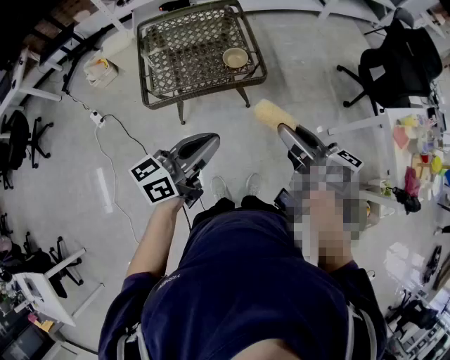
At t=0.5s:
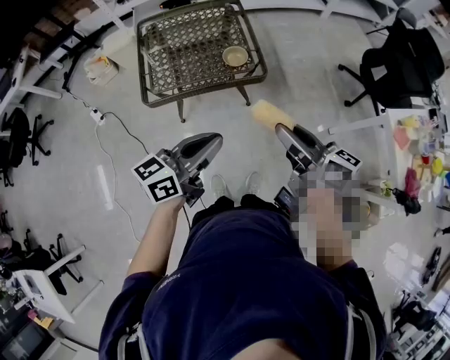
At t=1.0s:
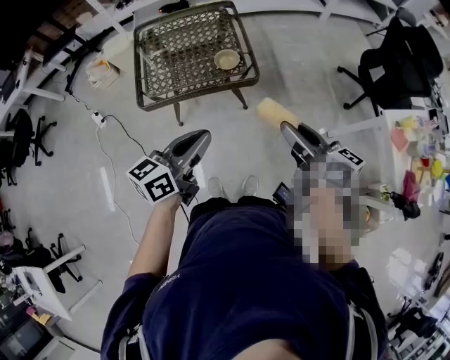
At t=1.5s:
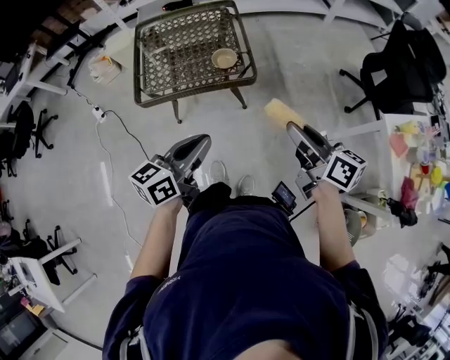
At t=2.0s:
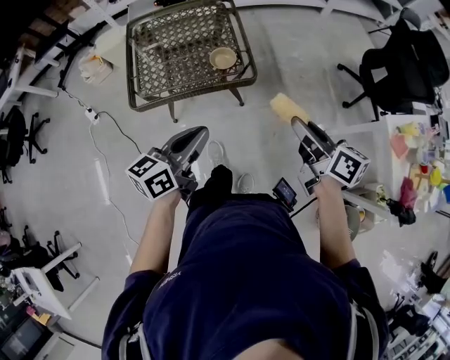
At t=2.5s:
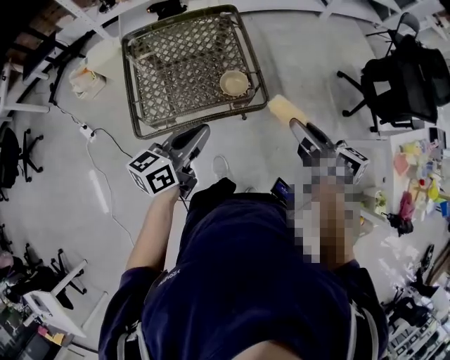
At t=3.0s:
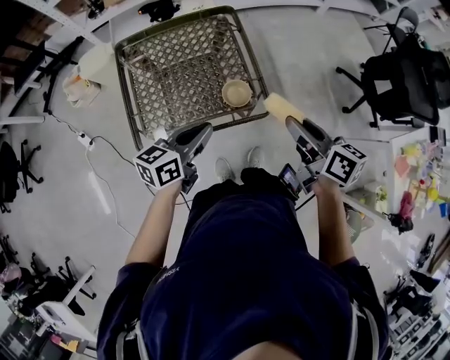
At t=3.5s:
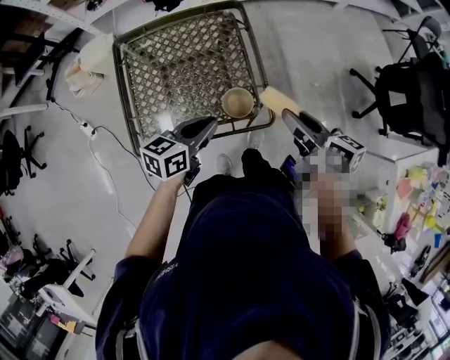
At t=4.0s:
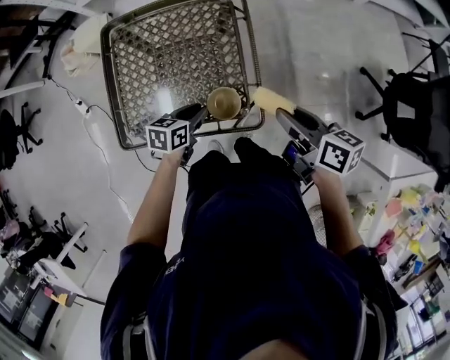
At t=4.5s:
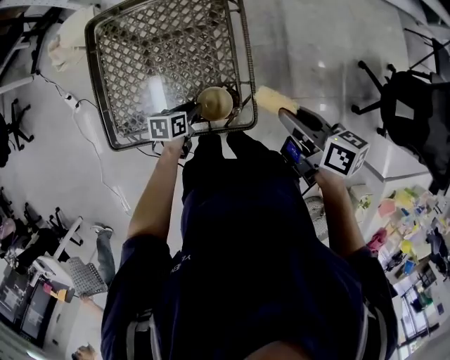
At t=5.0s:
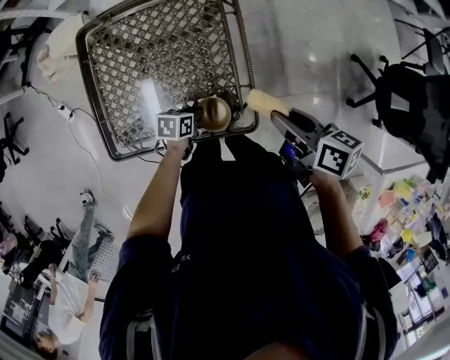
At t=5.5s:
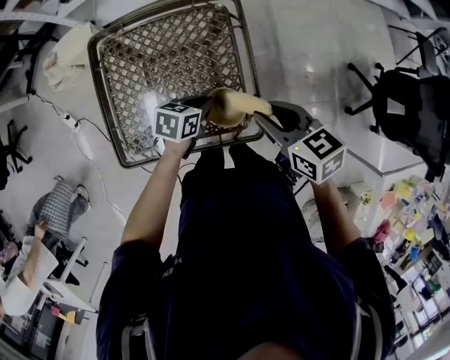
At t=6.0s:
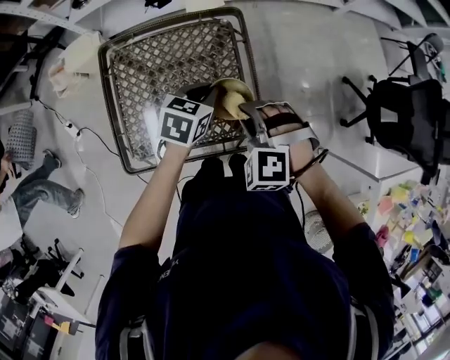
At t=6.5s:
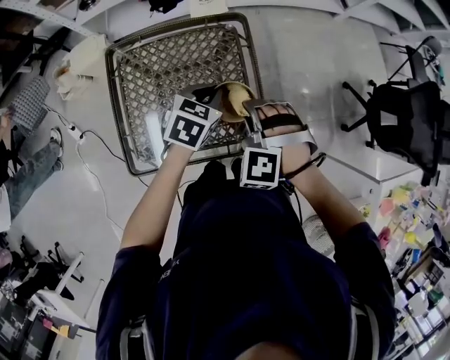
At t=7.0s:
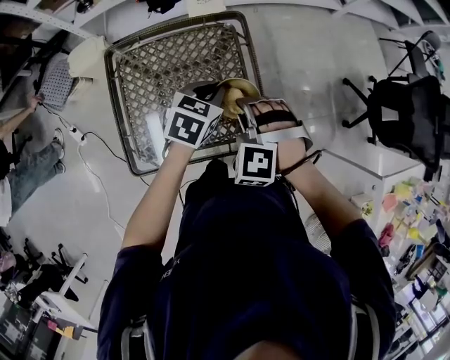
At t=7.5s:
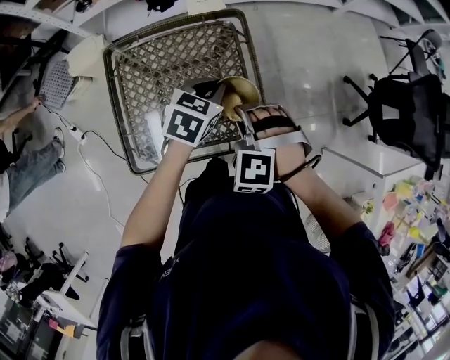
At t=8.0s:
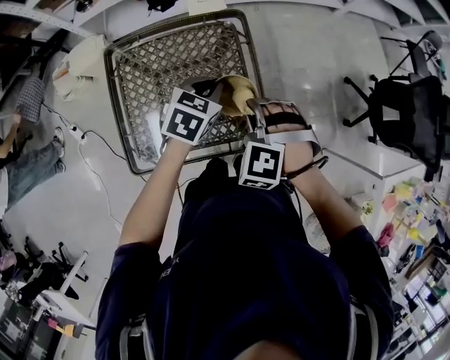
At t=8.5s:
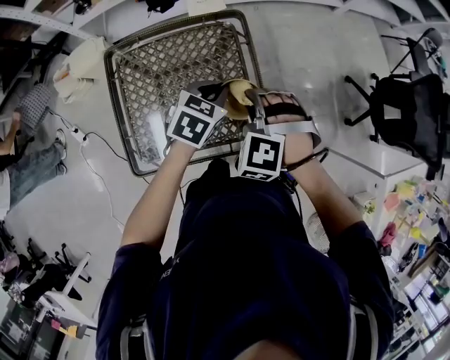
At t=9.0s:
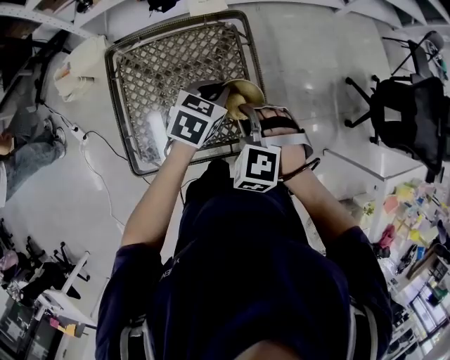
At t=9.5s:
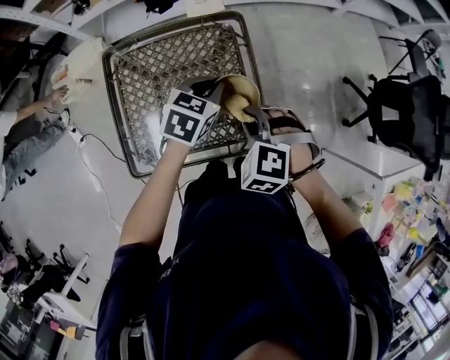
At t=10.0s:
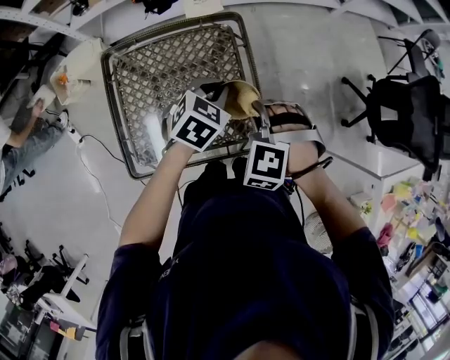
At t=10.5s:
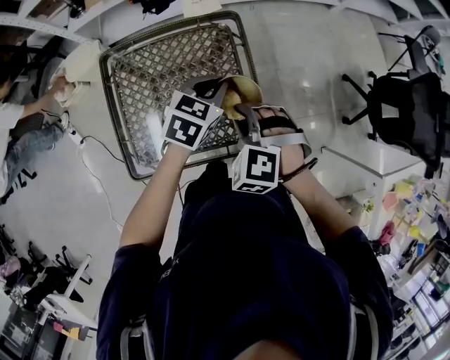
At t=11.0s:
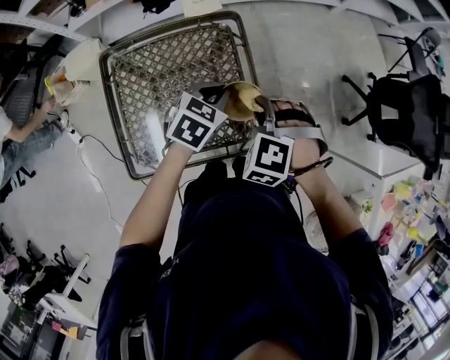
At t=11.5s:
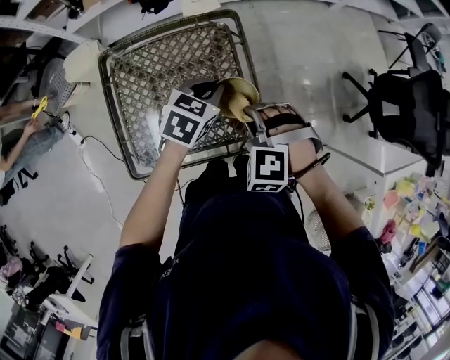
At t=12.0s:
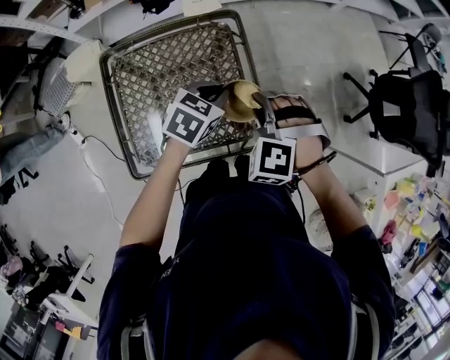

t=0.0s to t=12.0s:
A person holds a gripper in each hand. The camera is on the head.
t=0.0s to t=2.0s: The left gripper moves forward and downward, about 10 cm. Meanwhile the right gripper is displaced to the right and forward by approximately 15 cm.
t=2.0s to t=4.0s: The right gripper is displaced forward by roughly 35 cm, and changes its angle by some 20 degrees; the left gripper goes about 40 cm forward and downward, and angles its fingers downward, by approximately 30 degrees.
t=4.0s to t=6.0s: The right gripper moves to the left, some 15 cm, and rolls counterclockwise, seen from behind, by approximately 100 degrees, while the left gripper is displaced forward and upward by roughly 15 cm, and rotates roughly 20 degrees.
t=6.0s to t=8.0s: The grippers move only a little.
t=10.0s to t=12.0s: The grippers make only small movements.

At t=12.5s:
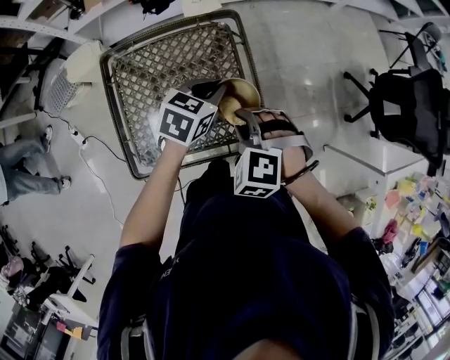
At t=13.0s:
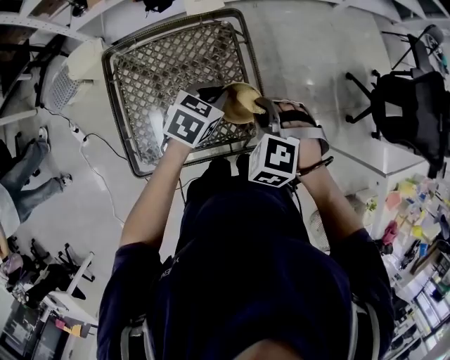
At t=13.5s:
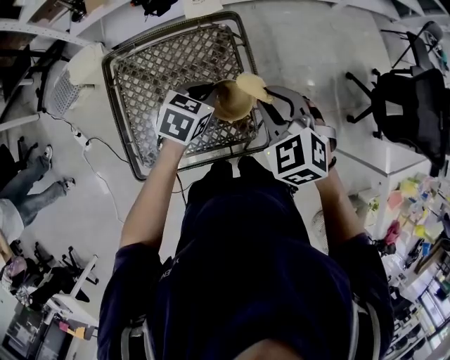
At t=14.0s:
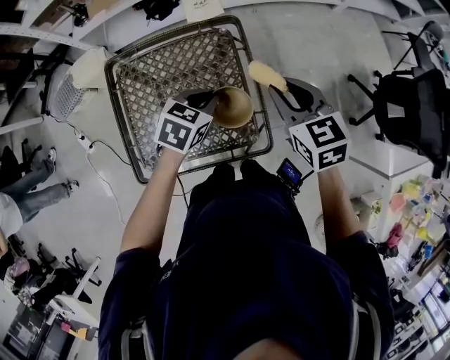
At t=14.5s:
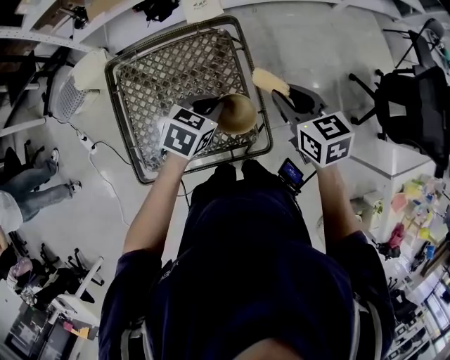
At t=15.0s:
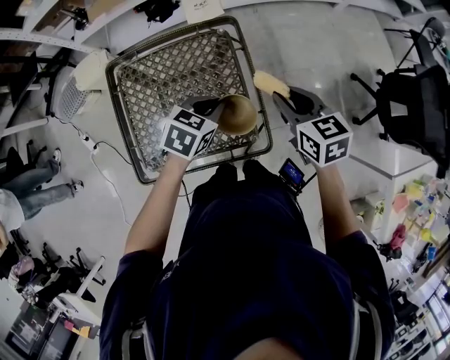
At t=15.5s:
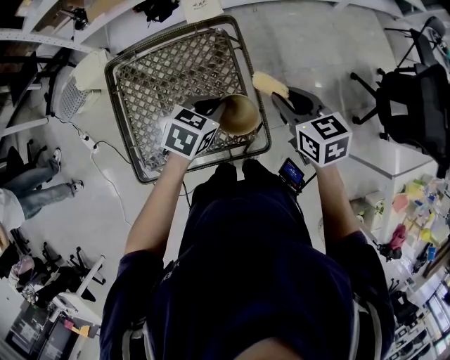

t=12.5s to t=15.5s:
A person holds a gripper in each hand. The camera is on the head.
t=12.5s to t=14.0s: The right gripper moves forward, upward and to the right, some 15 cm, and rotates around the line of its fingers by roughly 50 degrees, clockwise from behind.
t=14.0s to t=15.5s: The right gripper shifts by about 5 cm.

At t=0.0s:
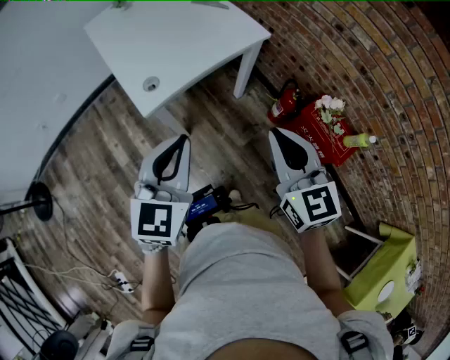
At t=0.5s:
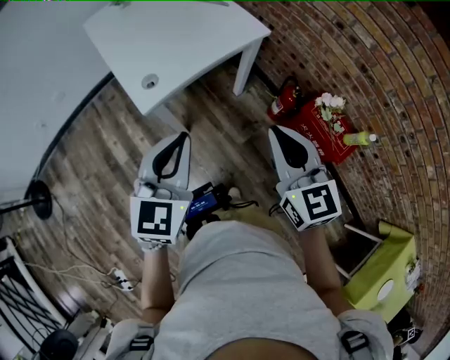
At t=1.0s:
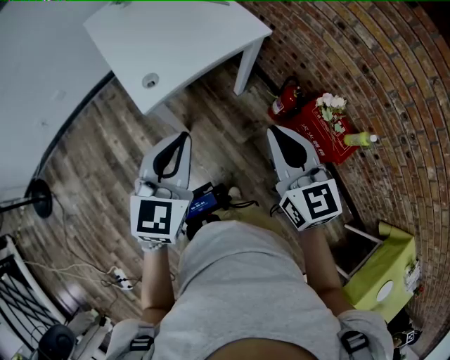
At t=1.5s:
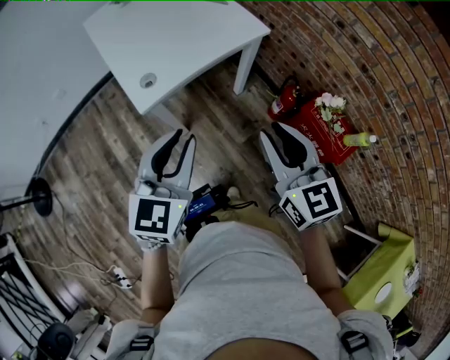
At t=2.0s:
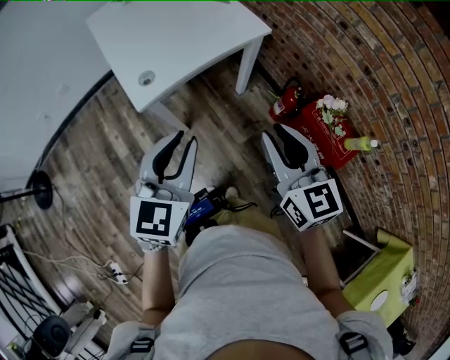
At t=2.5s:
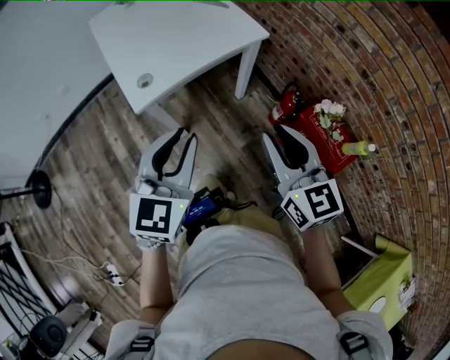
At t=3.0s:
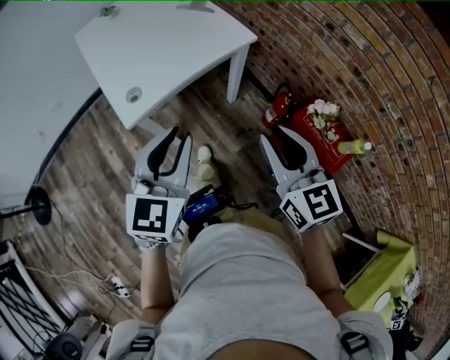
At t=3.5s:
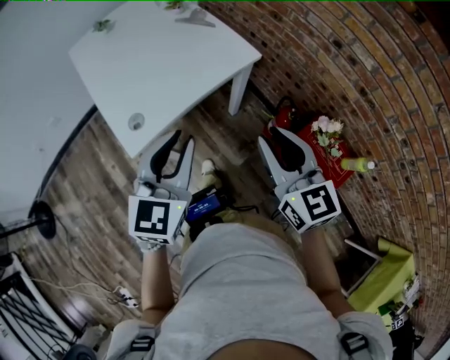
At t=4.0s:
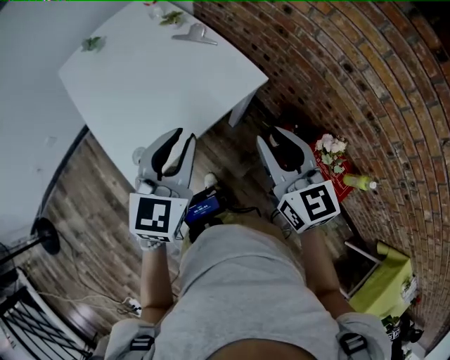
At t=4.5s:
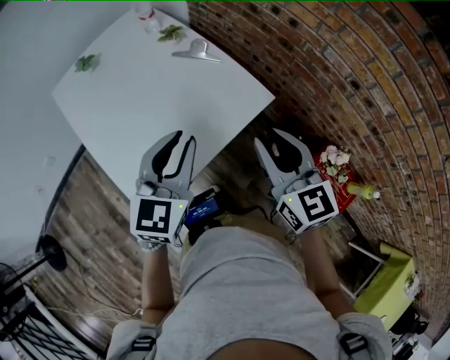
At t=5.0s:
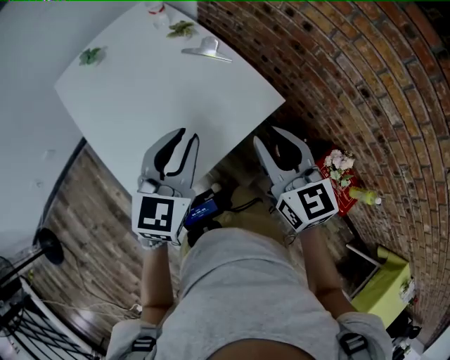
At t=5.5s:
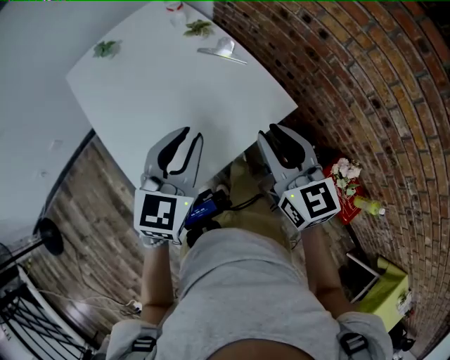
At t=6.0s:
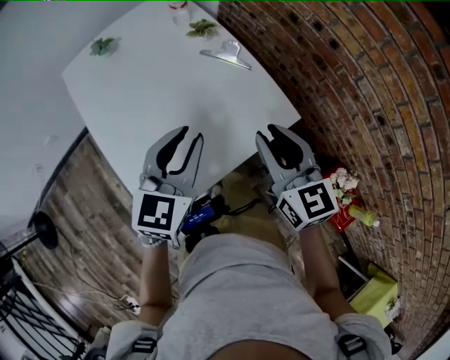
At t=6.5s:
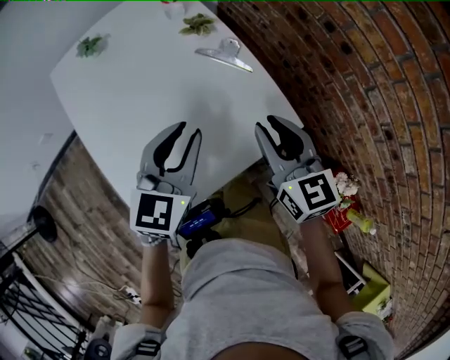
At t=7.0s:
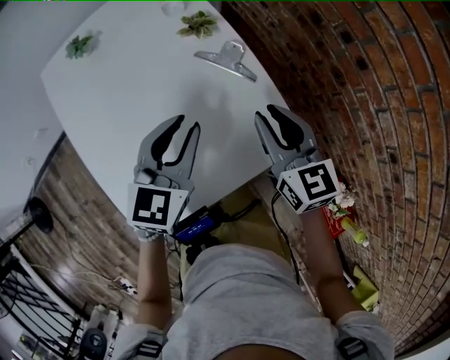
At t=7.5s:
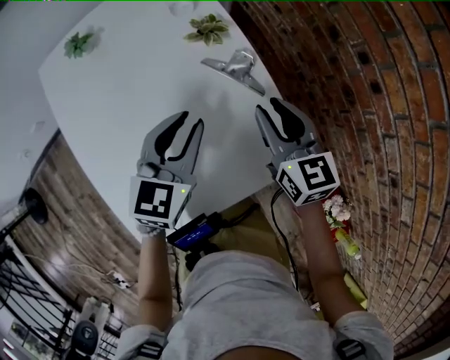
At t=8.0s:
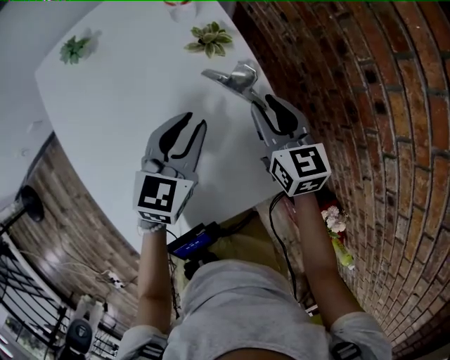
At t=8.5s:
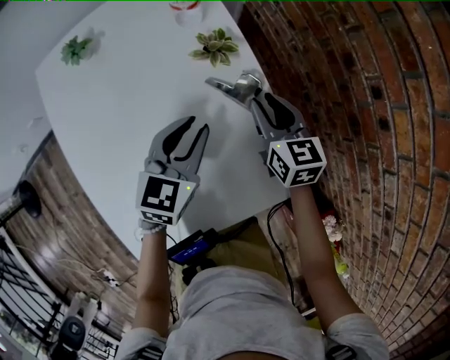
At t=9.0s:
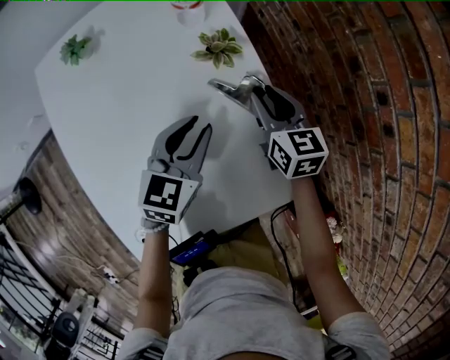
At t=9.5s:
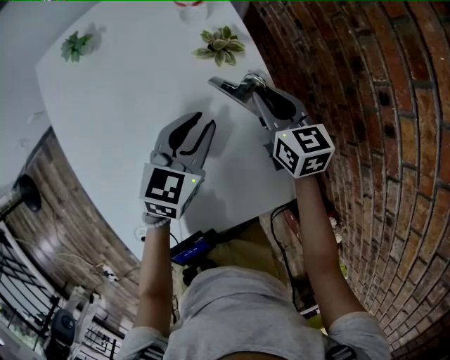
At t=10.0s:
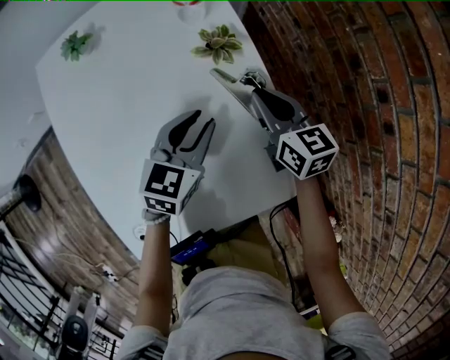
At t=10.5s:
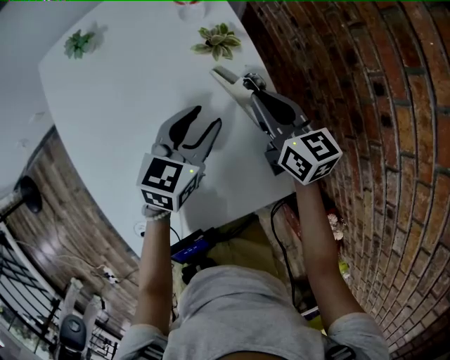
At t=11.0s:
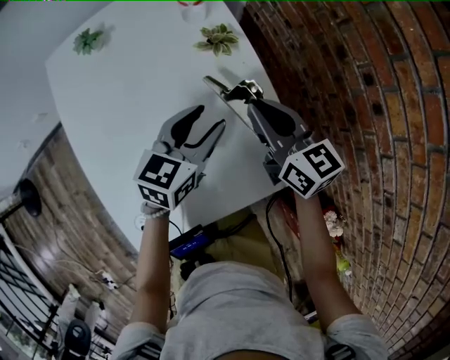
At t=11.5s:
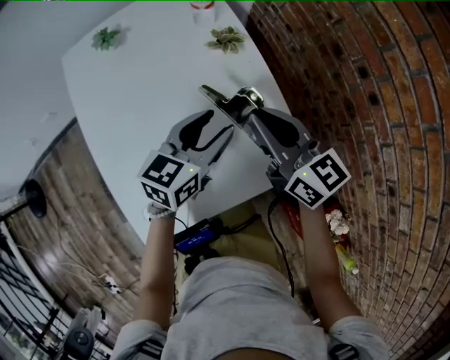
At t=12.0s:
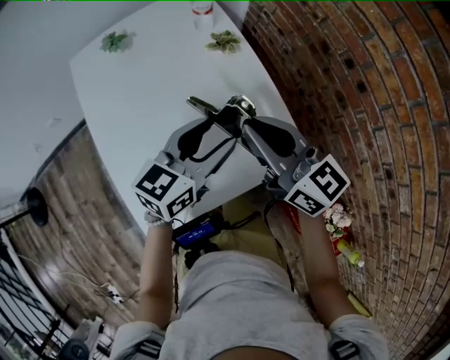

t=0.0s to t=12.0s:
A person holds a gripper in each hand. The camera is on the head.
t=0.0s to t=2.0s: The right gripper opens up.
t=2.0s to t=4.0s: The grippers both shift forward by roughly 25 cm.
t=4.0s to t=6.0s: Both grippers travel together forward and to the left, approximately 15 cm.
t=6.0s to t=8.0s: Both grippers move forward and downward, about 25 cm.
t=8.0s to t=10.0s: The right gripper ends up about 5 cm from where it was, and closes its fingers.
t=10.0s to t=12.0s: The grippers both shift backward and upward by approximately 20 cm. The left gripper rotates approximately 20 degrees, and opens up, while the right gripper rotates about 20 degrees.
